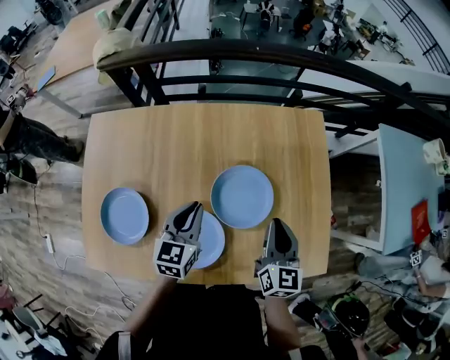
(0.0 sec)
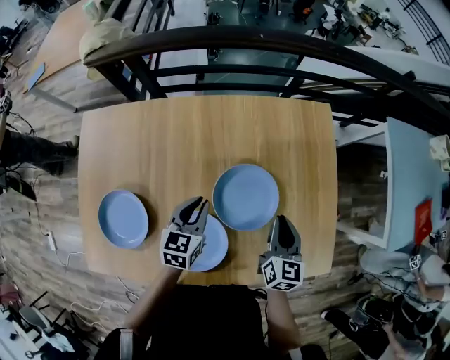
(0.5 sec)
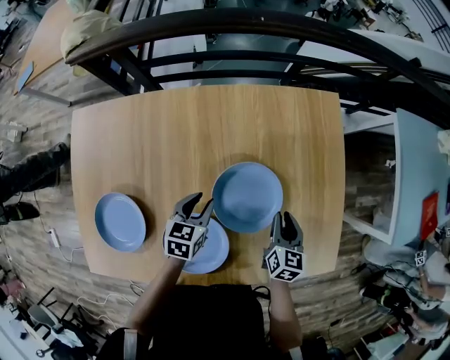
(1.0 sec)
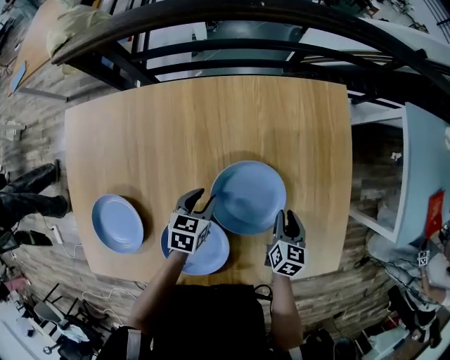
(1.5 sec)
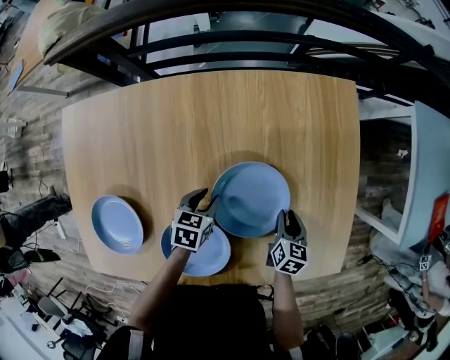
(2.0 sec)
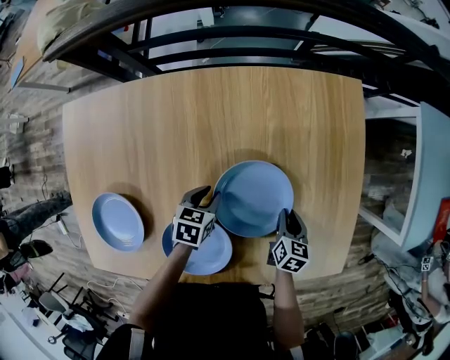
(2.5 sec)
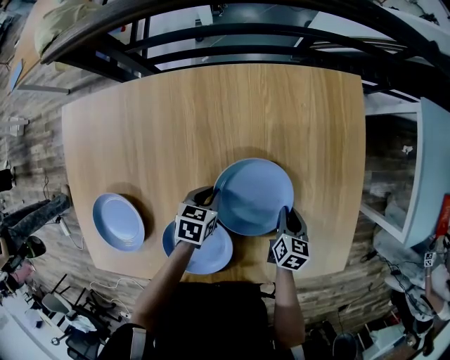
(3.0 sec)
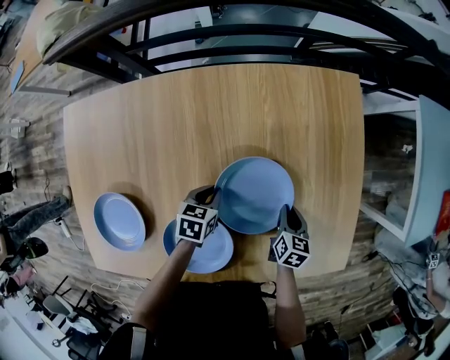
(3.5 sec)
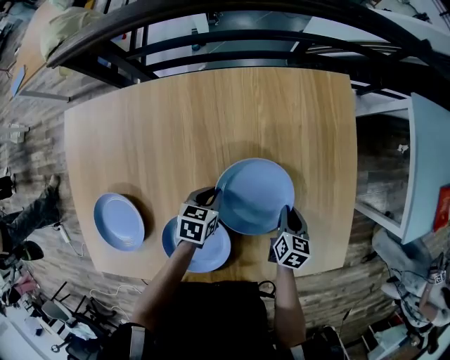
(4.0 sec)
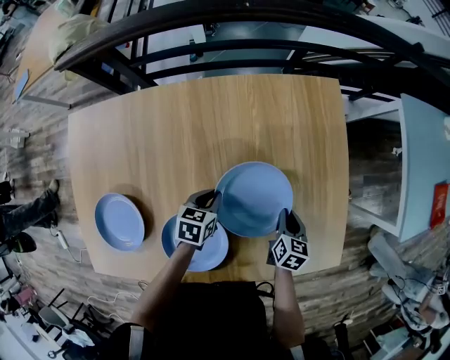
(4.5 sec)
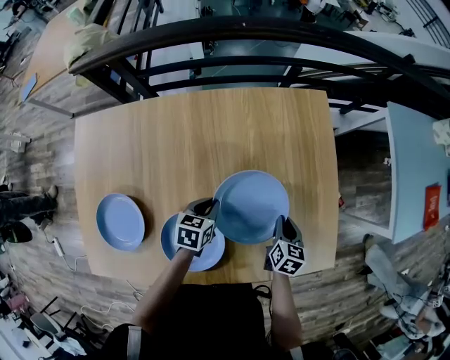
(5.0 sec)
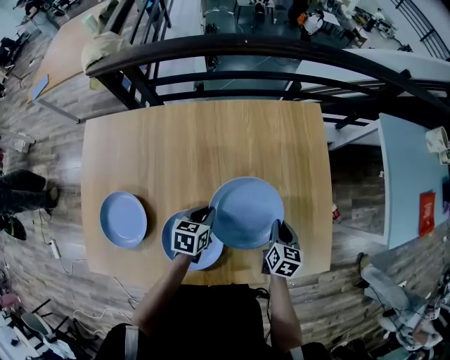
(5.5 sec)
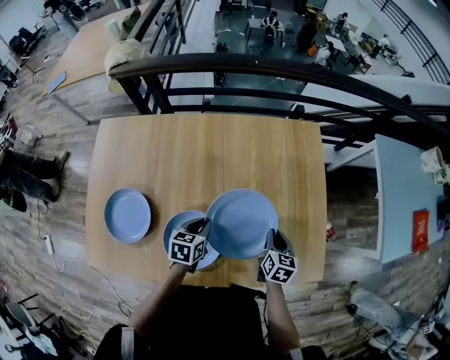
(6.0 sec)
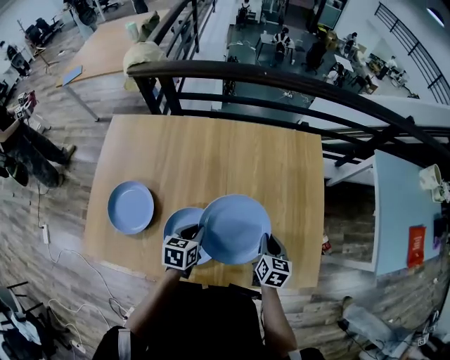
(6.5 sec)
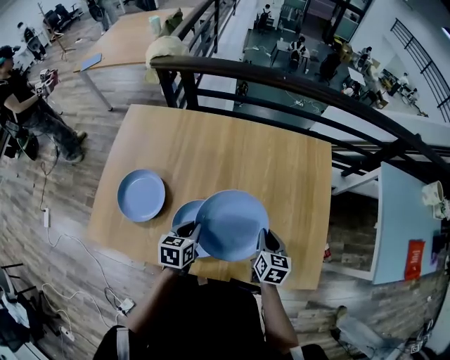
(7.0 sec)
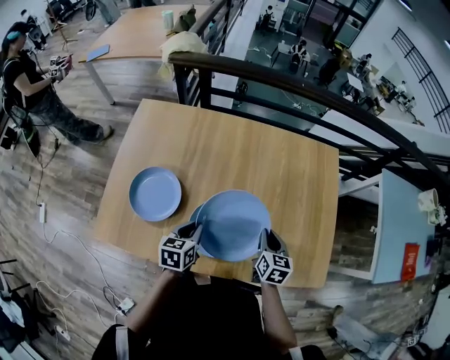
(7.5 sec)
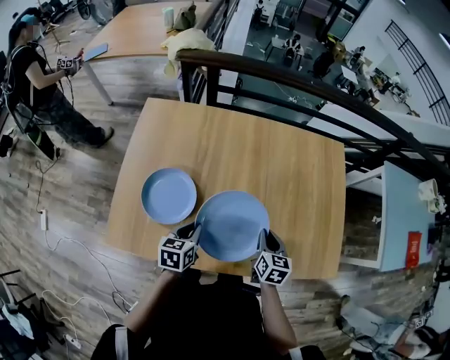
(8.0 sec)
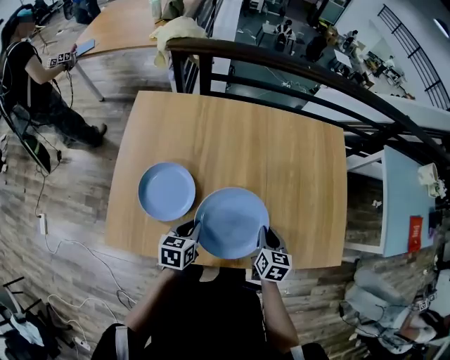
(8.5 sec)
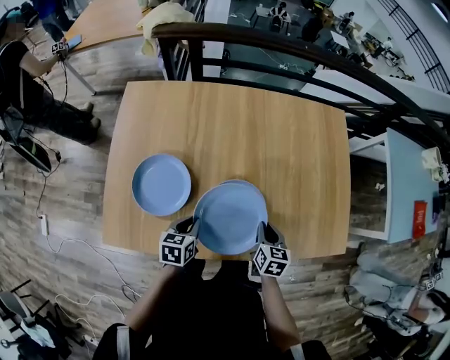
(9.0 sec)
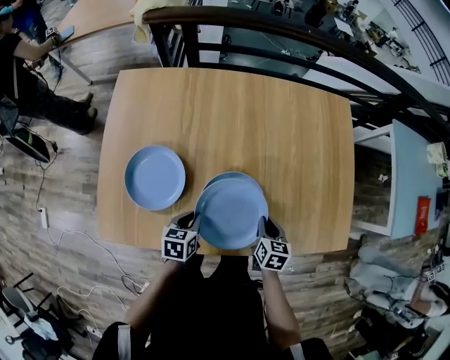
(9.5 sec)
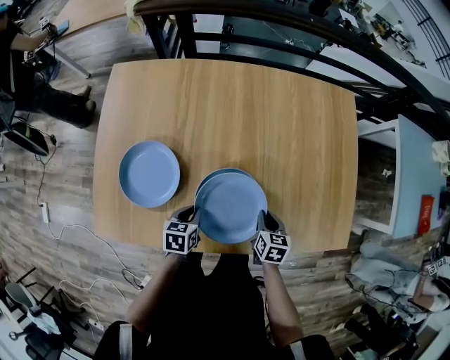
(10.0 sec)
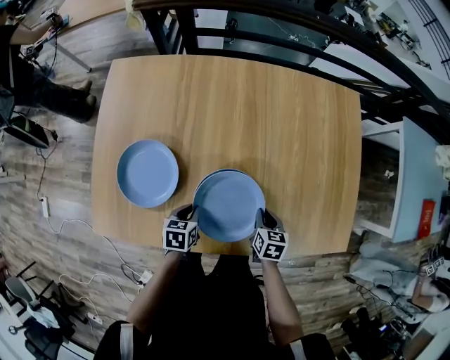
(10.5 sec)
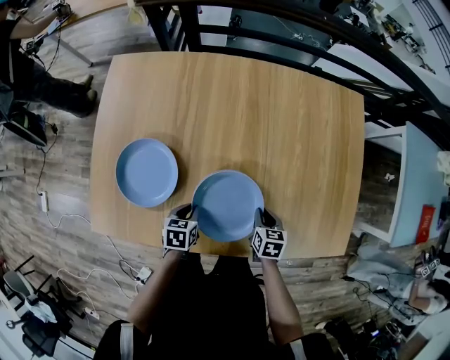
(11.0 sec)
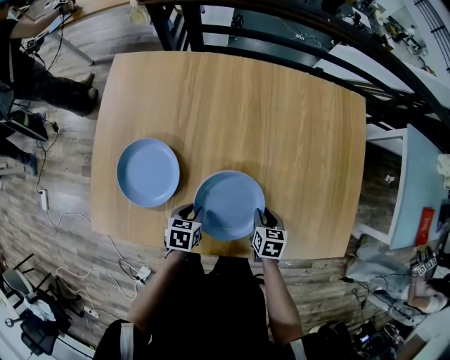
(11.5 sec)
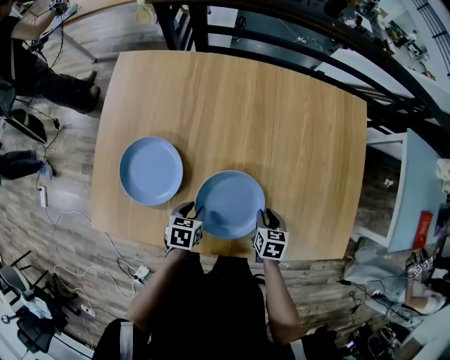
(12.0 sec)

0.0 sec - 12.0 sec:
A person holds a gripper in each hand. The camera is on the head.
0.0 sec - 2.0 sec: The grippers both shift downward by some 25 cm. The left gripper changes its angle by about 30 degrees, and opens. The right gripper tips its fingers downward by approximately 30 degrees, and opens its fingers.
2.0 sec - 4.0 sec: The left gripper closes.
4.0 sec - 6.0 sec: Both grippers travel together upward and backward, some 15 cm.
6.0 sec - 8.0 sec: Both grippers move to the left and backward, about 25 cm.
8.0 sec - 10.0 sec: The grippers both shift downward by some 15 cm.
10.0 sec - 12.0 sec: The grippers stay close to where they were, moving slightly.

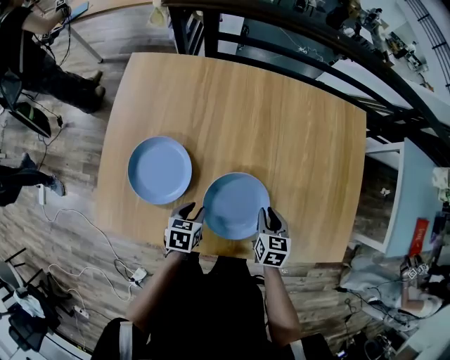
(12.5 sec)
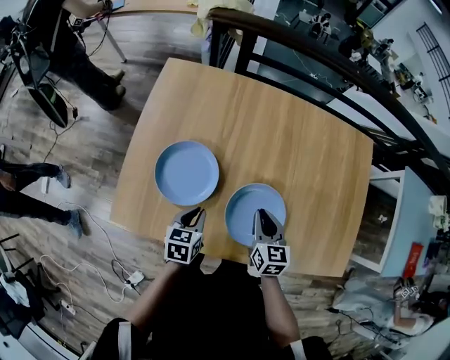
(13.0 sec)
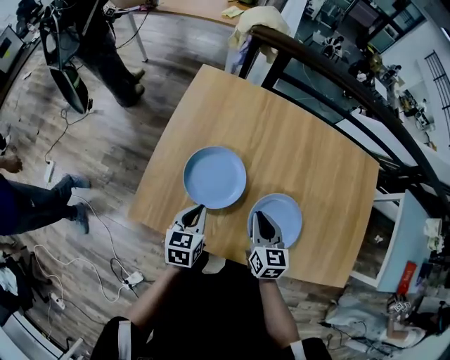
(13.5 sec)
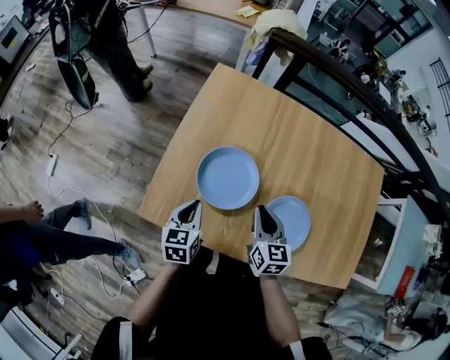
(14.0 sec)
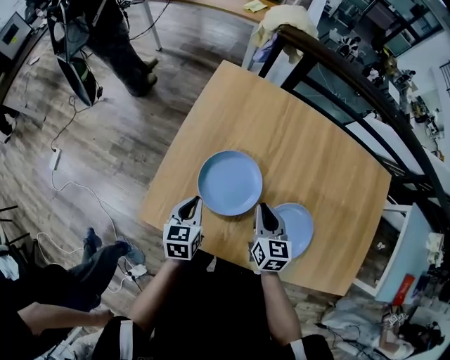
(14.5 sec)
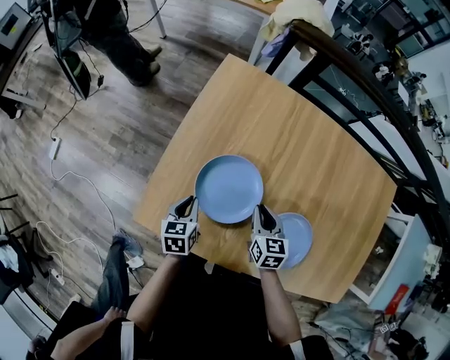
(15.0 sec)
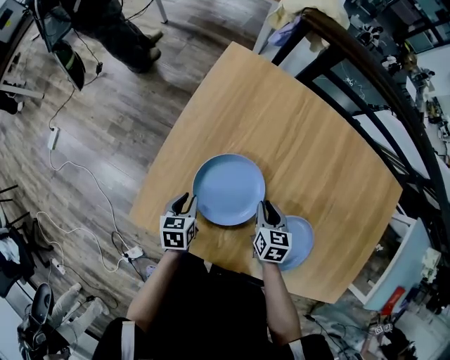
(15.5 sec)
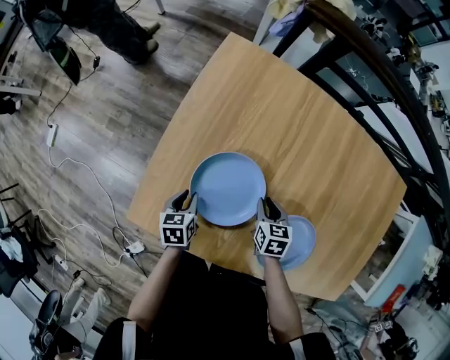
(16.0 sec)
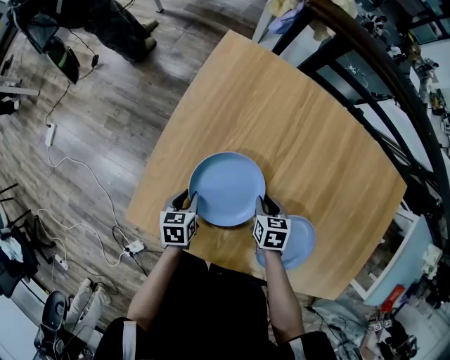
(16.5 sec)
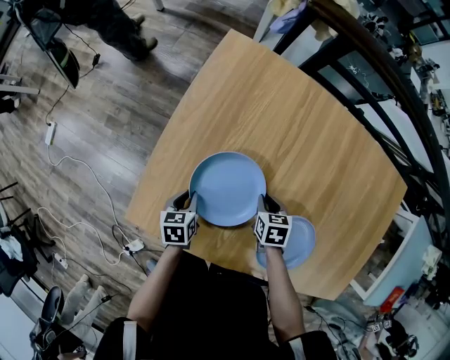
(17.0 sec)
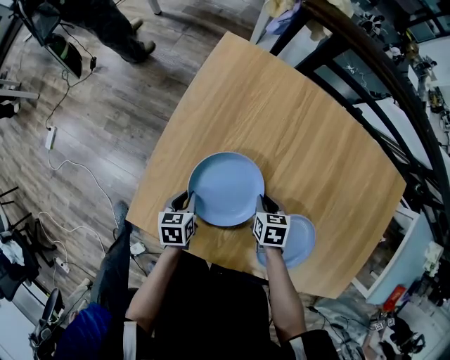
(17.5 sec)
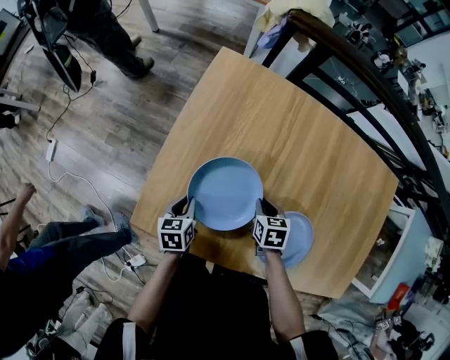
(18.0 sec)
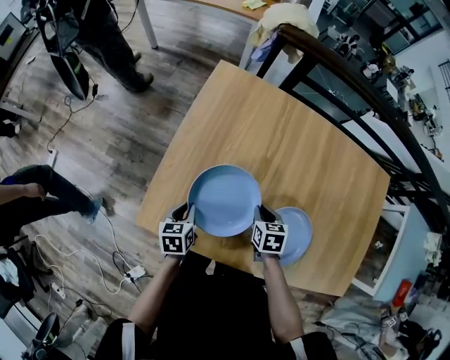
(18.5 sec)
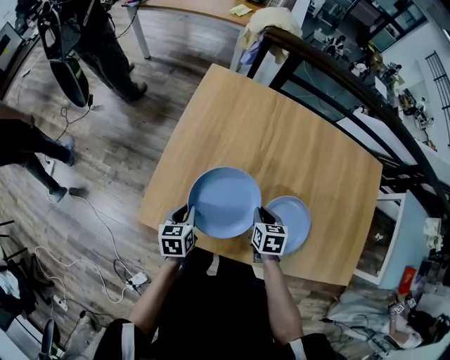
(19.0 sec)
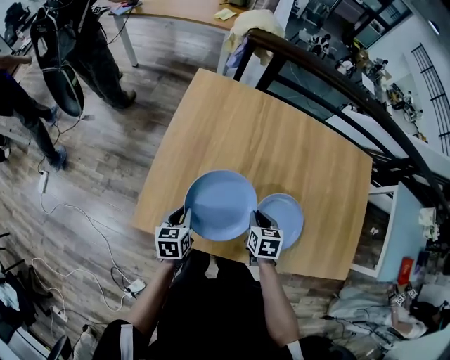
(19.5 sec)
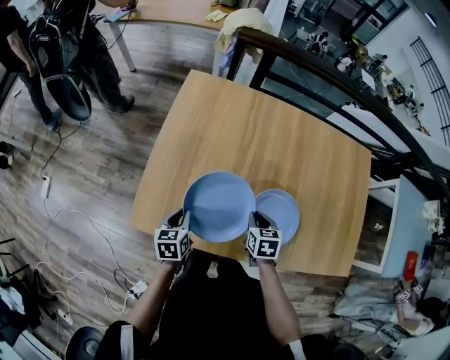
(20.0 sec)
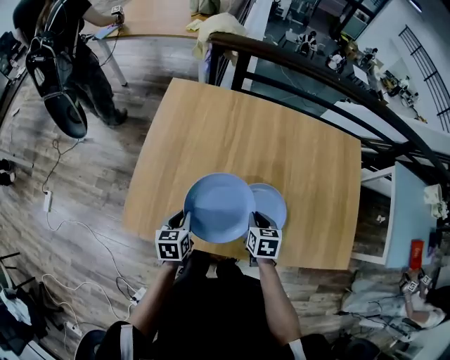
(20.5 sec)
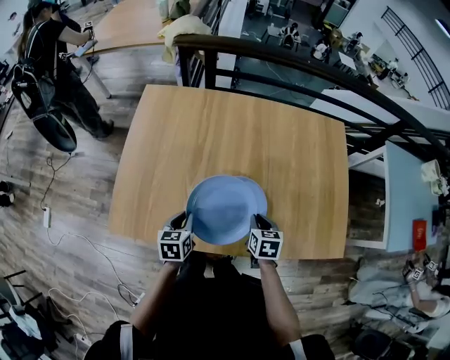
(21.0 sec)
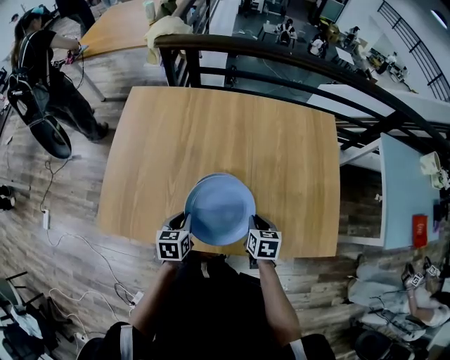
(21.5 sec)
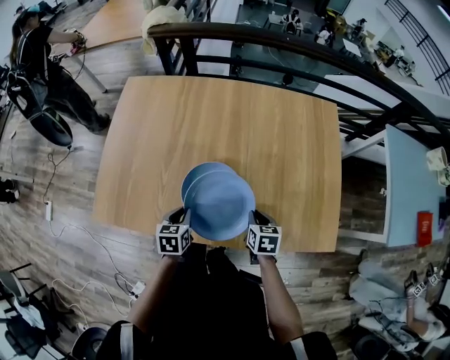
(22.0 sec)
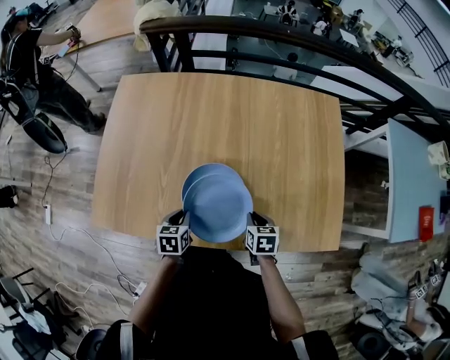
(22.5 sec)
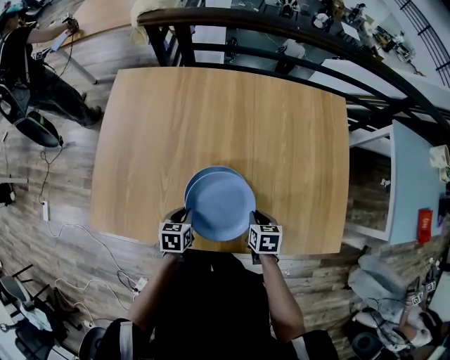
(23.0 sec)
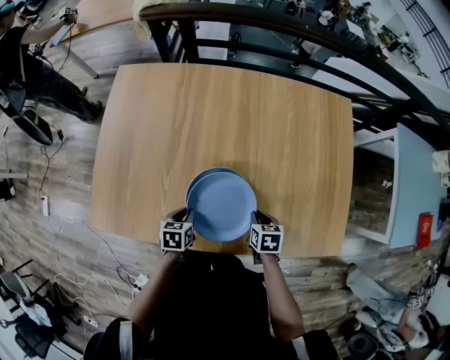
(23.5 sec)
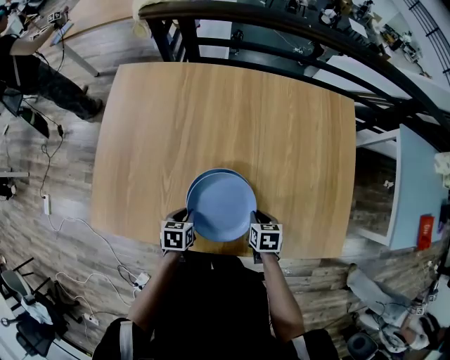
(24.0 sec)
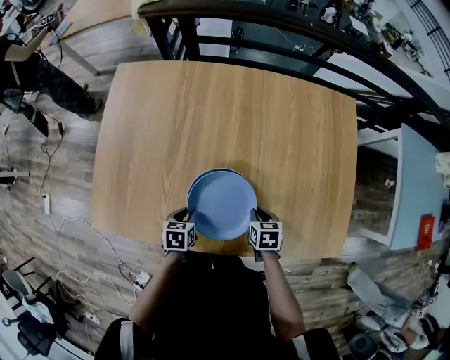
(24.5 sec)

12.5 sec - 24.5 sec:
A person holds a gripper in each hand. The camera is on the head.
12.5 sec - 14.5 sec: The left gripper ends up about 25 cm from where it was, changes its angle by roughly 30 degrees, and closes up. Meanwhile the right gripper moves roughly 30 cm, and changes its angle by about 20 degrees.
14.5 sec - 16.5 sec: Both grippers travel together downward, about 15 cm. The right gripper points its fingers roughly 30 degrees further downward. The left gripper changes its angle by approximately 20 degrees.
16.5 sec - 18.5 sec: The grippers both shift upward by roughly 5 cm.
18.5 sec - 20.5 sec: The left gripper heads to the right and upward, covering roughly 10 cm. Meanwhile the right gripper heads to the right, backward and upward, covering some 15 cm.
20.5 sec - 22.5 sec: The two grippers go approximately 20 cm to the right.
22.5 sec - 24.5 sec: The right gripper ends up approximately 5 cm from where it was.

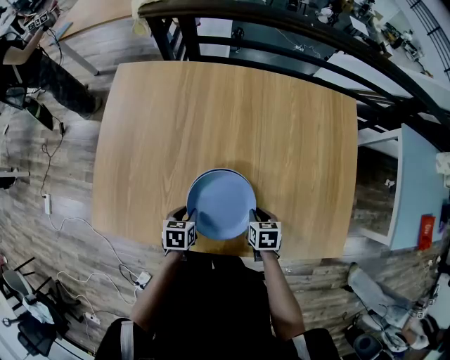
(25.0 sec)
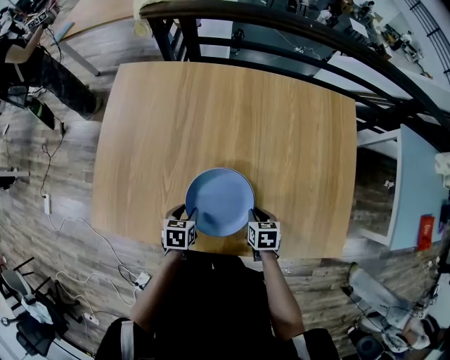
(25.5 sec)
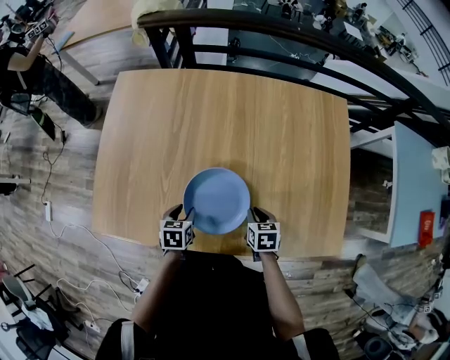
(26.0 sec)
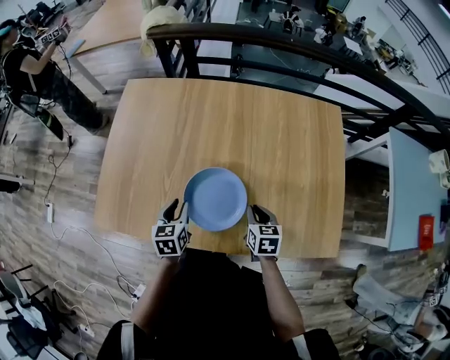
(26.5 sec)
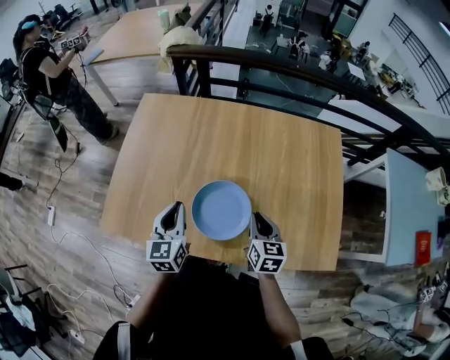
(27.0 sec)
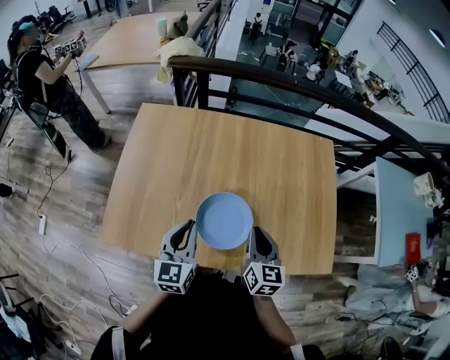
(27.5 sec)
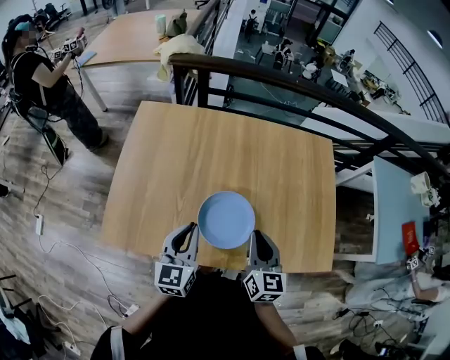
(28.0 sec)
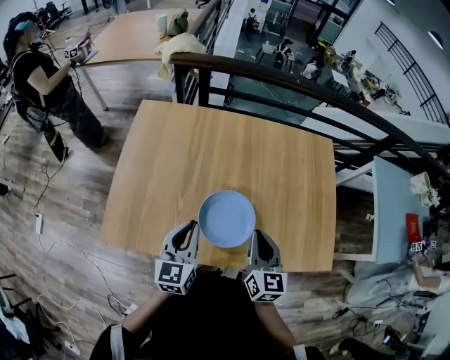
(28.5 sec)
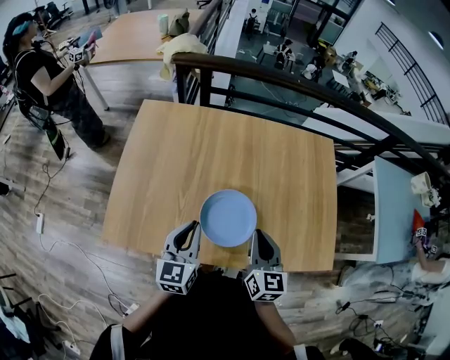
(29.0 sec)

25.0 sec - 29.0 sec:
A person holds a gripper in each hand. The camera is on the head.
25.0 sec - 27.0 sec: The grippers both shift upward by some 20 cm. The right gripper points its fingers some 30 degrees further upward, while the left gripper points its fingers about 40 degrees further upward, and closes its fingers.
27.0 sec - 29.0 sec: The right gripper travels upward and to the left by some 10 cm. Meanwhile the left gripper ends up approximately 5 cm from where it was.
